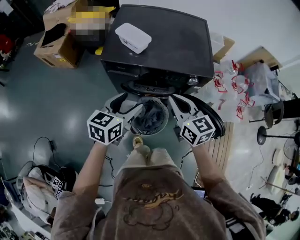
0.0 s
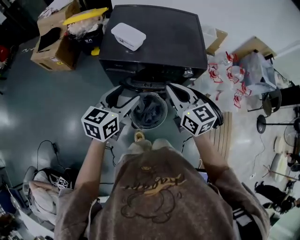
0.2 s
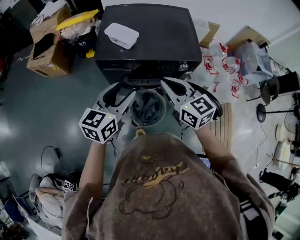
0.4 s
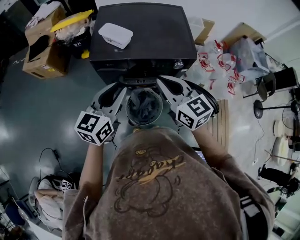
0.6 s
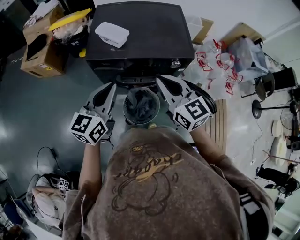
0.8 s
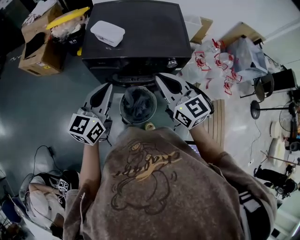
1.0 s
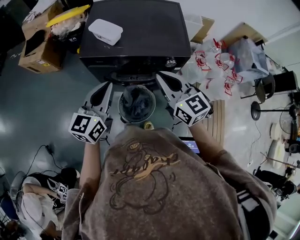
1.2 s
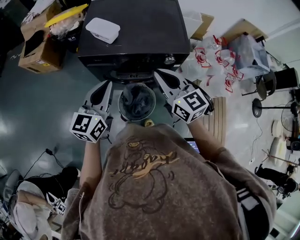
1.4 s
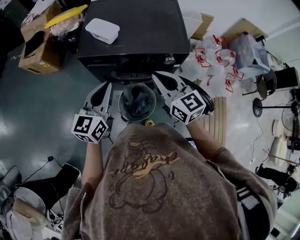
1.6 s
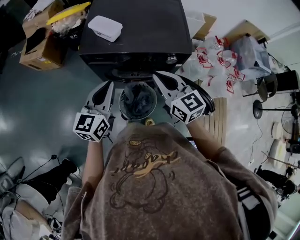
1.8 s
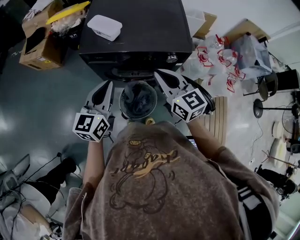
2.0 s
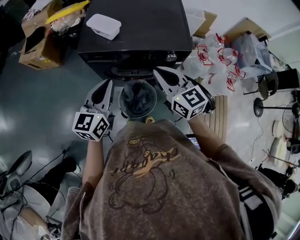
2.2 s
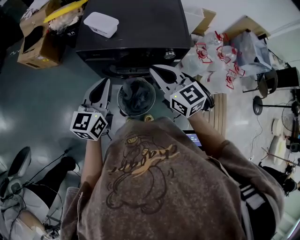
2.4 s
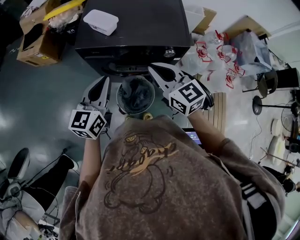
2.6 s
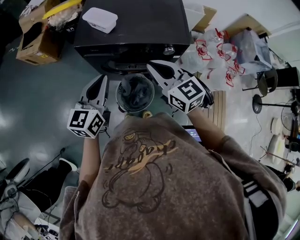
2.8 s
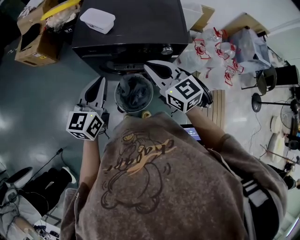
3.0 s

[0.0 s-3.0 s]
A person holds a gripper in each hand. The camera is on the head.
0.0 to 1.6 s: The grippers both shift upward by approximately 5 cm. The left gripper turns by some 20 degrees, and closes up.
1.6 to 3.0 s: The grippers make only small movements.

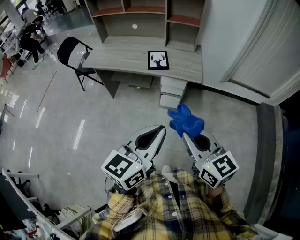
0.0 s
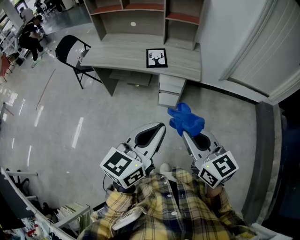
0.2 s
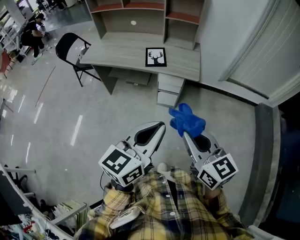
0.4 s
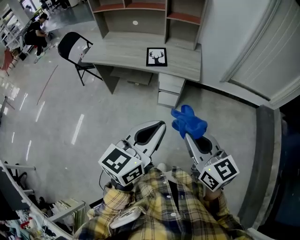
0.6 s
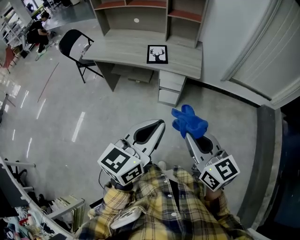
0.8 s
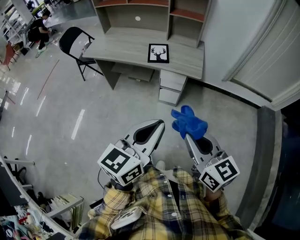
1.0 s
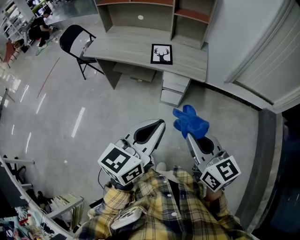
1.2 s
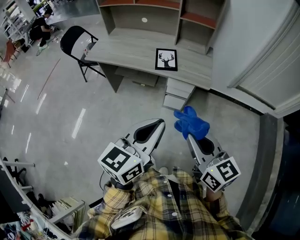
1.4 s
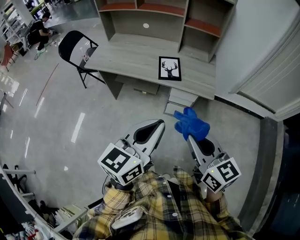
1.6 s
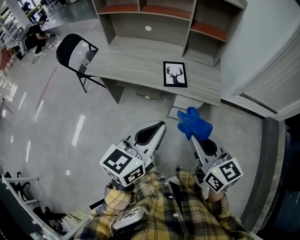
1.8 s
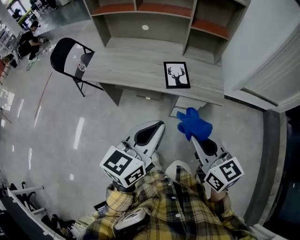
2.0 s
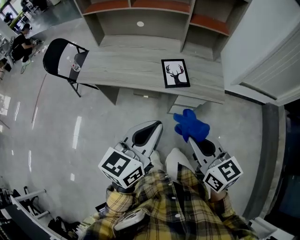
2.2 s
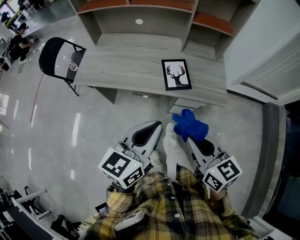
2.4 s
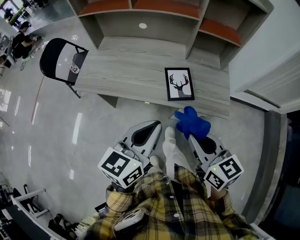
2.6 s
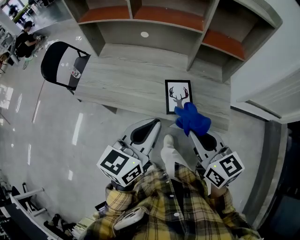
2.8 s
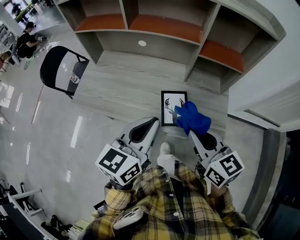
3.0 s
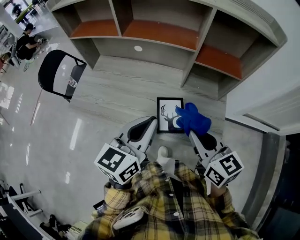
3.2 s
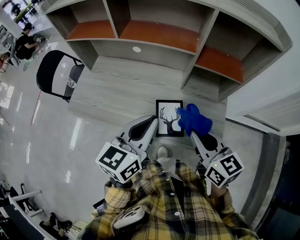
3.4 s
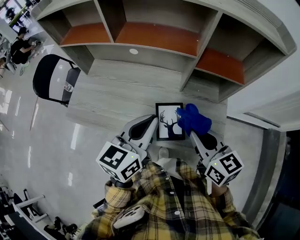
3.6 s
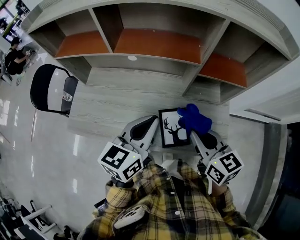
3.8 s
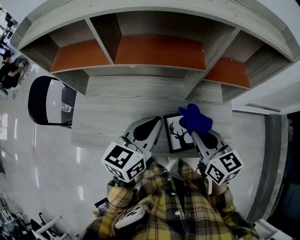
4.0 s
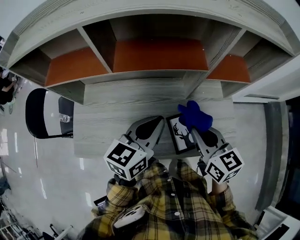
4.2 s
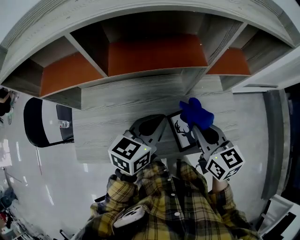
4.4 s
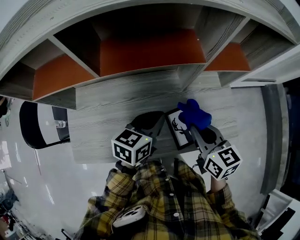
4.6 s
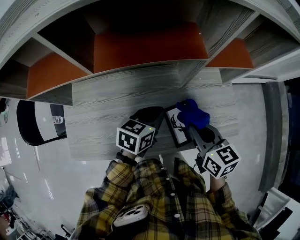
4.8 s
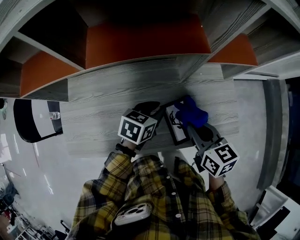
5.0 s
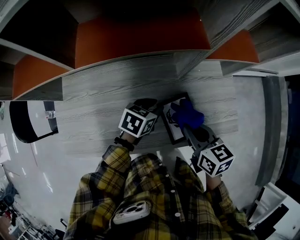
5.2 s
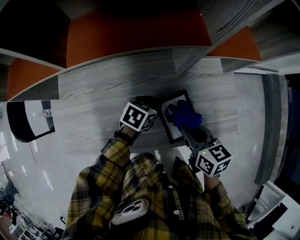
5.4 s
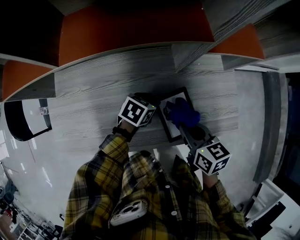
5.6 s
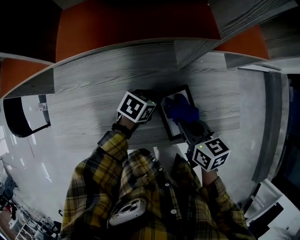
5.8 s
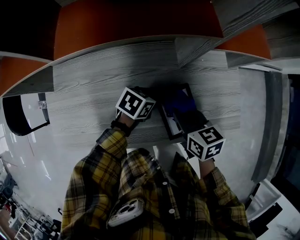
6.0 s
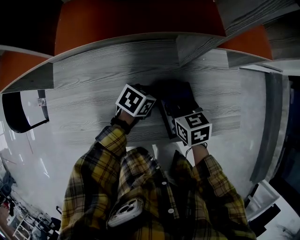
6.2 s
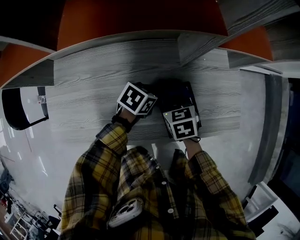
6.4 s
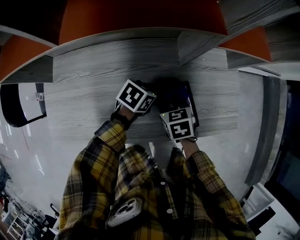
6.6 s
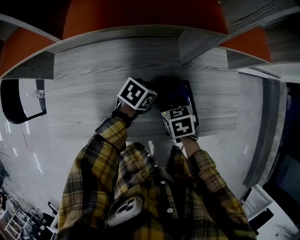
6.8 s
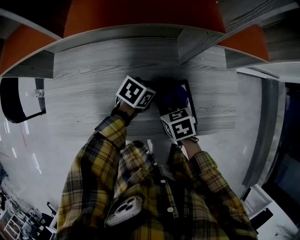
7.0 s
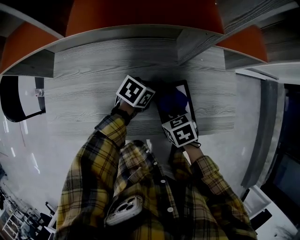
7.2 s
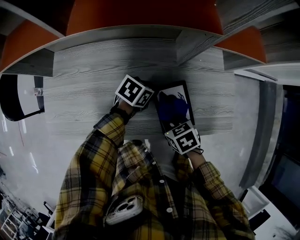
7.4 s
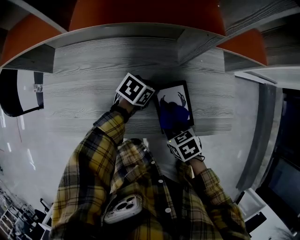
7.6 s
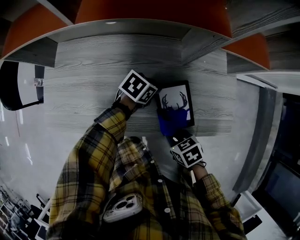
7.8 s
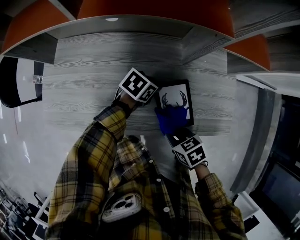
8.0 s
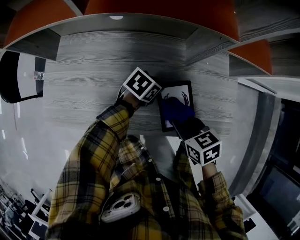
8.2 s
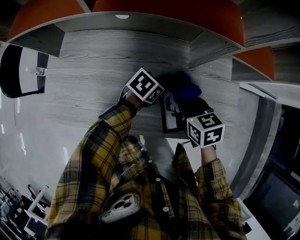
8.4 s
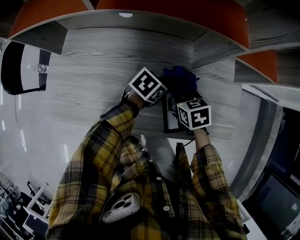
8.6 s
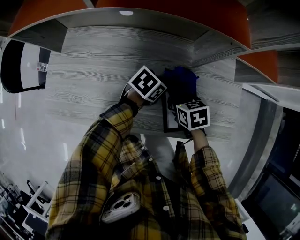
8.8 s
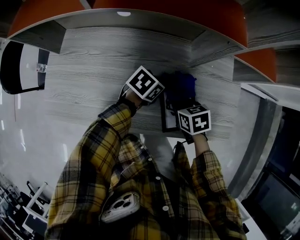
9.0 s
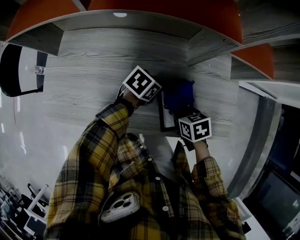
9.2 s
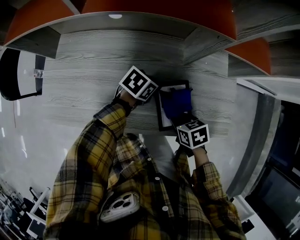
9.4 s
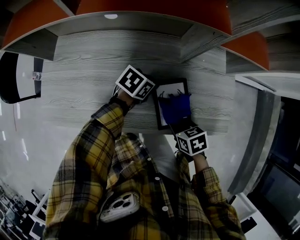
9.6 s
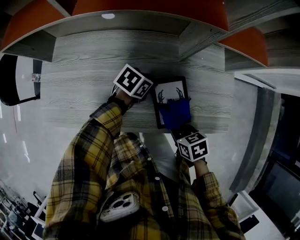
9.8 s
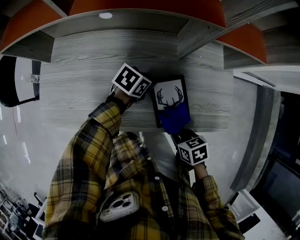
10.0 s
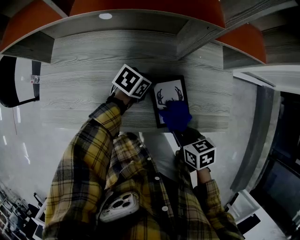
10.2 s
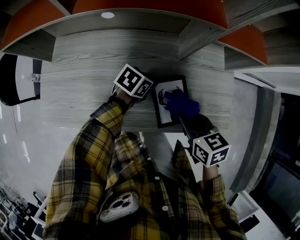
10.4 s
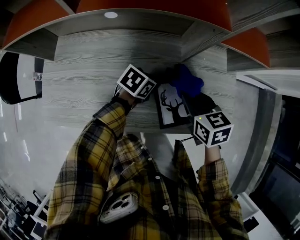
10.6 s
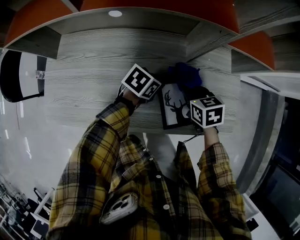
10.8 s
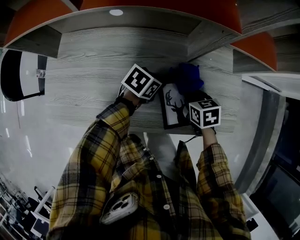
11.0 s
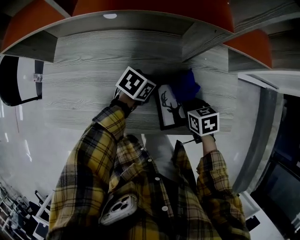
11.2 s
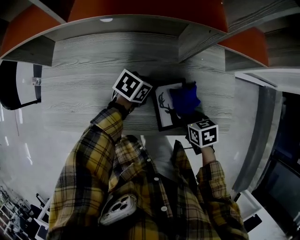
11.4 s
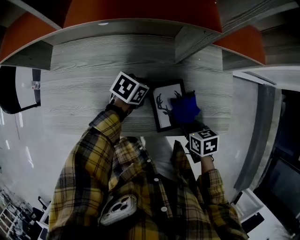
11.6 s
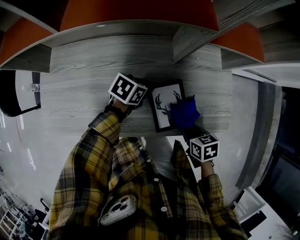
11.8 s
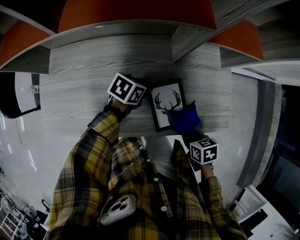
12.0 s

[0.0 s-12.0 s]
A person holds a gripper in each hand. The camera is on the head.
0.0 to 1.6 s: The left gripper is displaced forward and to the left by approximately 15 cm. Meanwhile the right gripper goes roughly 15 cm forward.
1.6 to 3.0 s: The two grippers go about 35 cm forward.
3.0 to 4.4 s: The right gripper moves some 20 cm, and swivels roughly 30 degrees. The left gripper changes place by roughly 20 cm, and changes its angle by approximately 30 degrees.
4.4 to 6.0 s: Both grippers travel together downward, about 20 cm. The left gripper swivels roughly 40 degrees, and opens.
6.0 to 7.6 s: The right gripper shifts by approximately 15 cm, and changes its angle by approximately 40 degrees.
7.6 to 9.0 s: The right gripper goes upward and returns, about 5 cm each way.
9.0 to 10.4 s: The right gripper heads upward, covering roughly 10 cm.
10.4 to 12.0 s: The right gripper heads downward, covering roughly 10 cm, and rotates some 20 degrees.

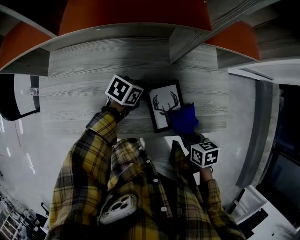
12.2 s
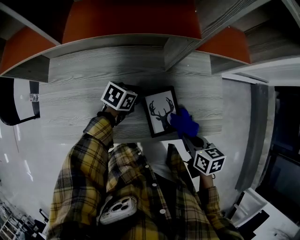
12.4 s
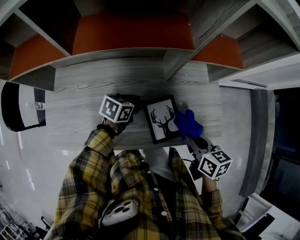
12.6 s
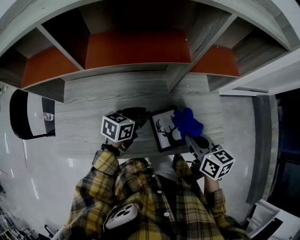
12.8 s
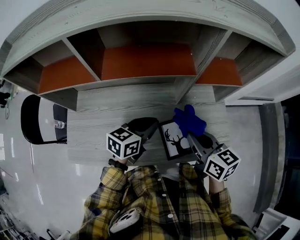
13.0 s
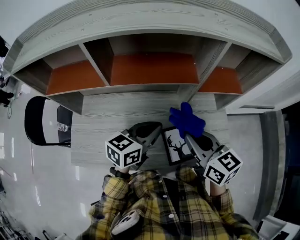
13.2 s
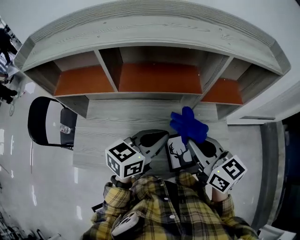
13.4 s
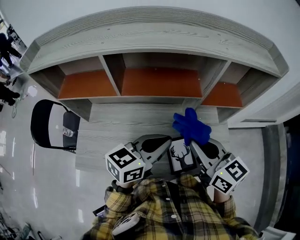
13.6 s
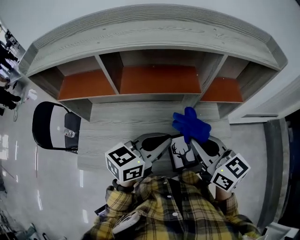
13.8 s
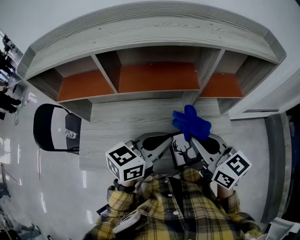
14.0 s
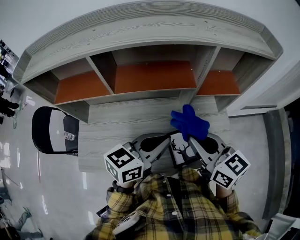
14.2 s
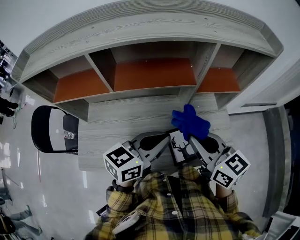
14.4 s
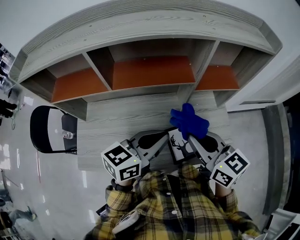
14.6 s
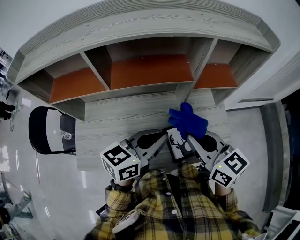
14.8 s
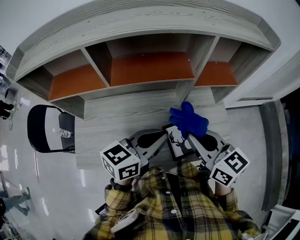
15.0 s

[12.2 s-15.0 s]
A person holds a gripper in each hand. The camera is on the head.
12.2 to 13.6 s: Both grippers travel together upward, roughly 35 cm. The right gripper points its fingers some 50 degrees further upward, while the left gripper angles its fingers upward, by about 40 degrees, and closes.
13.6 to 15.0 s: The grippers make only small movements.

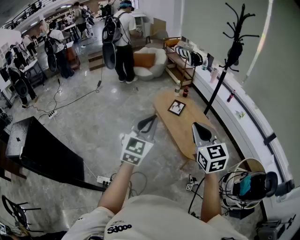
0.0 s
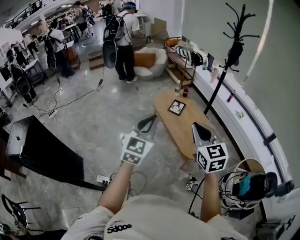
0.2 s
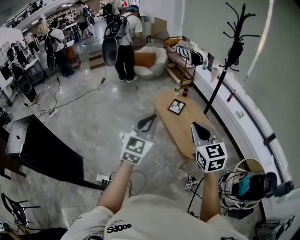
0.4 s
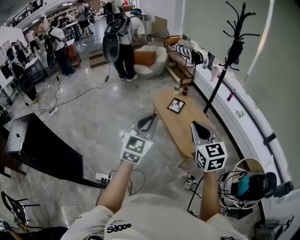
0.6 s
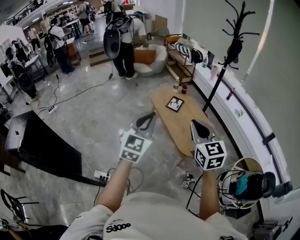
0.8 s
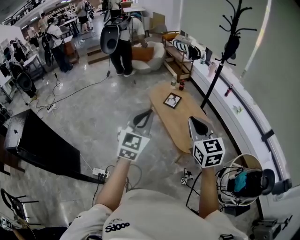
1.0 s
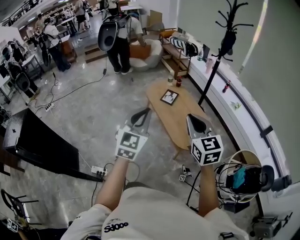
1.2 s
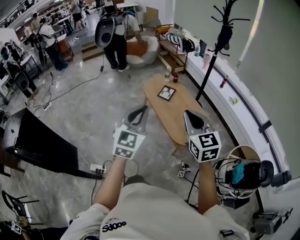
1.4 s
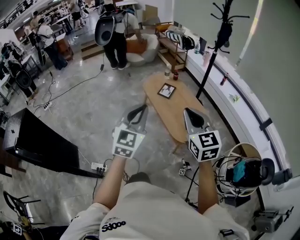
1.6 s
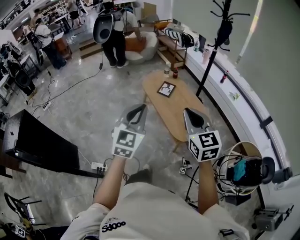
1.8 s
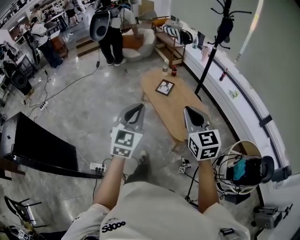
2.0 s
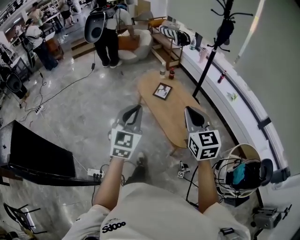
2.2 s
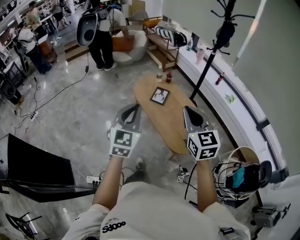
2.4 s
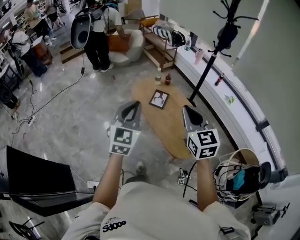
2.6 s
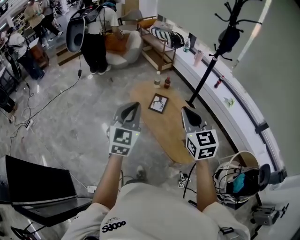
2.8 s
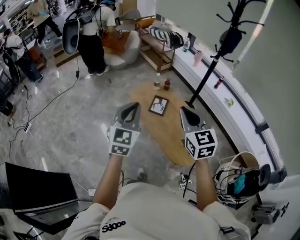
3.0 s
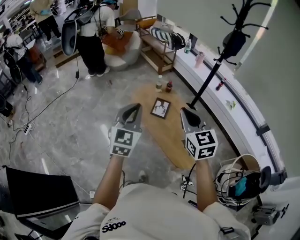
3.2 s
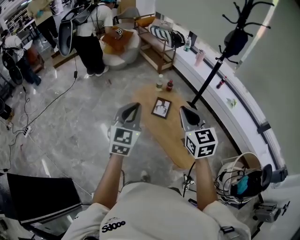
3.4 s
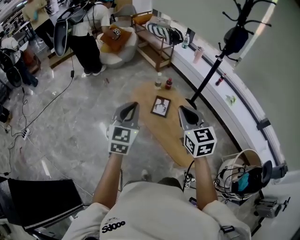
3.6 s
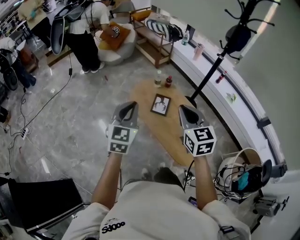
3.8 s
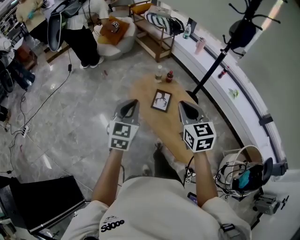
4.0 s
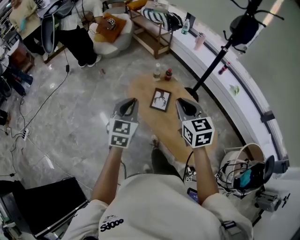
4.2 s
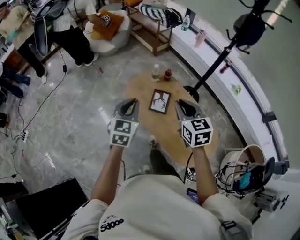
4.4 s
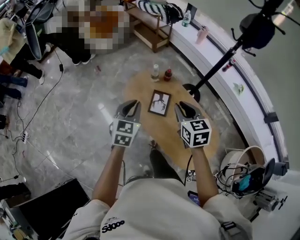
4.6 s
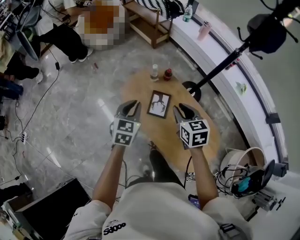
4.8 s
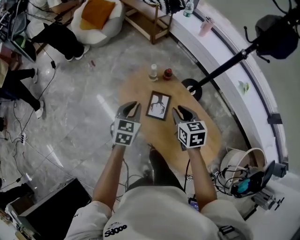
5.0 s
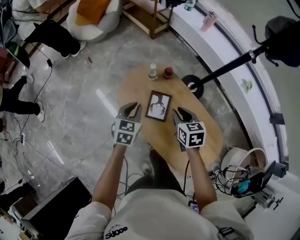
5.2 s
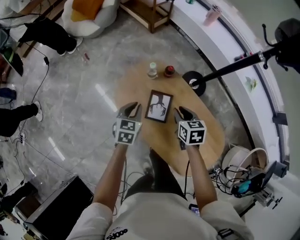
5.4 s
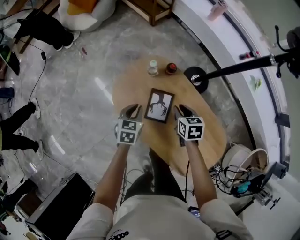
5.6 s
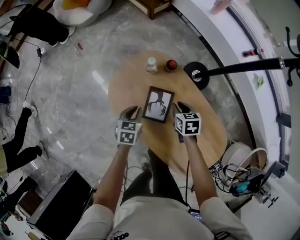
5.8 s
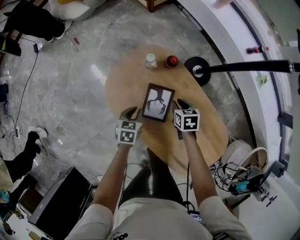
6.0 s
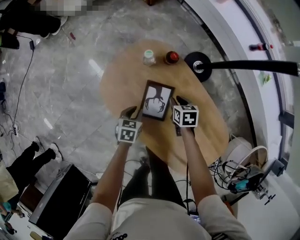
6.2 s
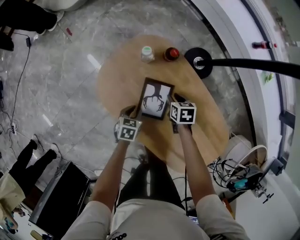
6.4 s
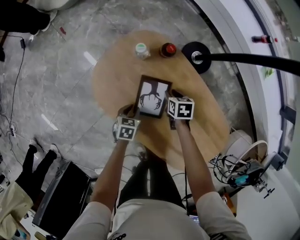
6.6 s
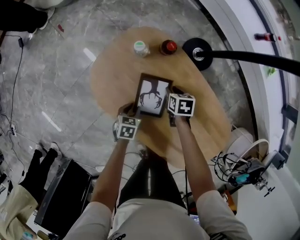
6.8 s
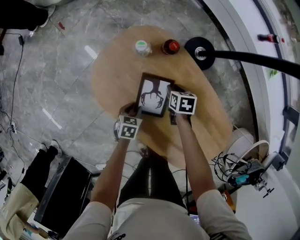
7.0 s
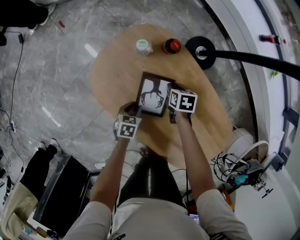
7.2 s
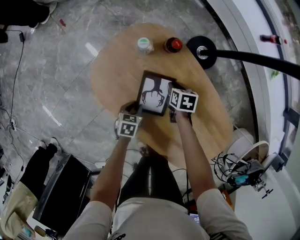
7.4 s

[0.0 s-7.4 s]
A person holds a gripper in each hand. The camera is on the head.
0.0 to 1.4 s: Both grippers travel together to the right, roughly 5 cm.
1.4 to 3.0 s: The grippers both shift forward by roughly 35 cm.
3.0 to 4.4 s: Both grippers move forward and downward, approximately 25 cm.
4.4 to 6.0 s: The grippers both shift downward and forward by some 50 cm. The left gripper points its fingers approximately 30 degrees further downward; the right gripper points its fingers approximately 30 degrees further downward.
6.0 to 7.4 s: Both grippers travel together downward, approximately 15 cm.
